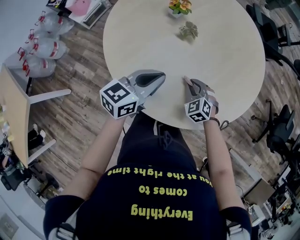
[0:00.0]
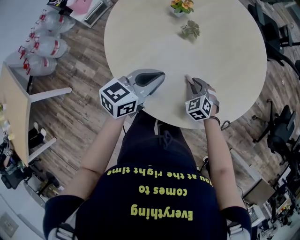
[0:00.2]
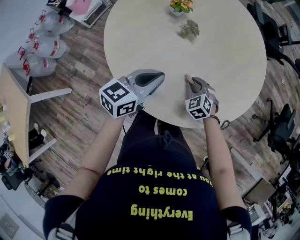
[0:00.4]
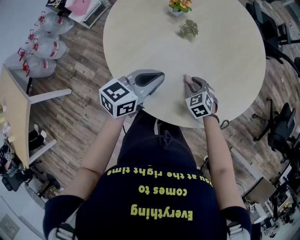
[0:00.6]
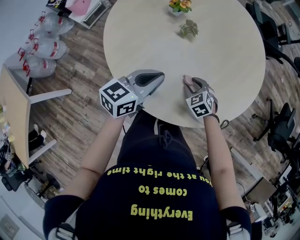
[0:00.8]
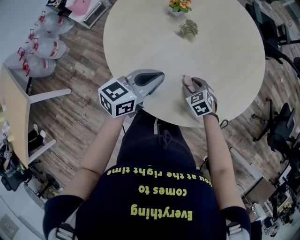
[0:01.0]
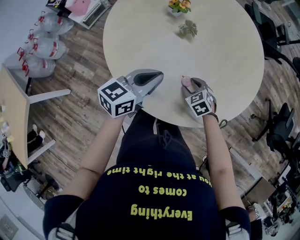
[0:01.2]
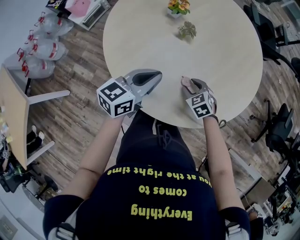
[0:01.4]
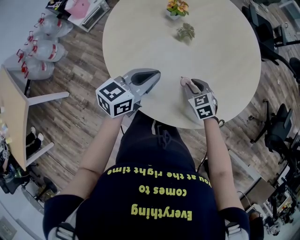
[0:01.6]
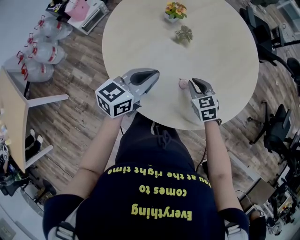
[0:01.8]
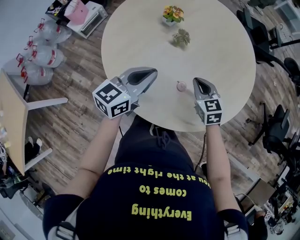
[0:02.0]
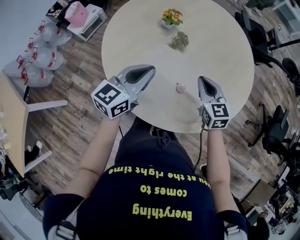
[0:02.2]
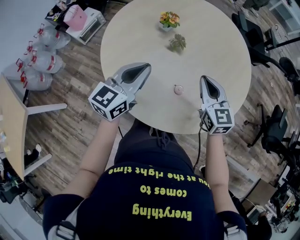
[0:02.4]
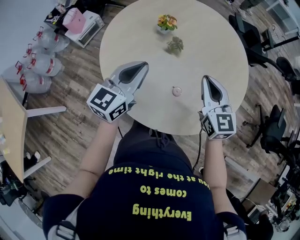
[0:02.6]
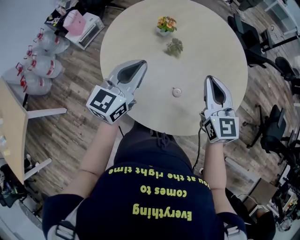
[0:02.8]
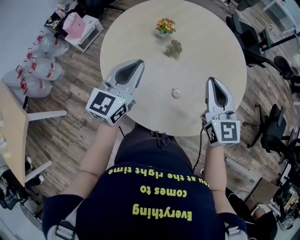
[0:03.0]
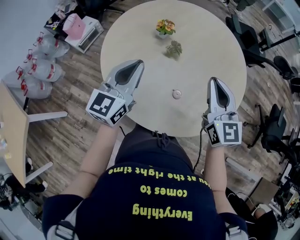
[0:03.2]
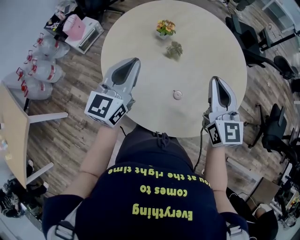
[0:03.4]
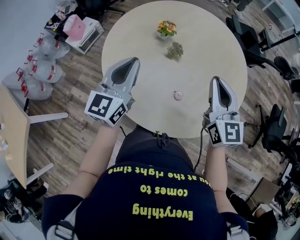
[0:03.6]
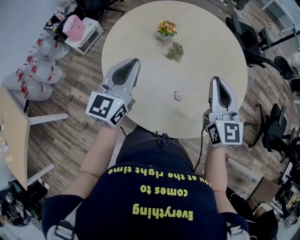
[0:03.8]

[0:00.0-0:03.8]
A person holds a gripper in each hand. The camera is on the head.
0.0 to 1.2 s: The right gripper opens.
1.2 to 2.6 s: The right gripper heads upward, covering about 30 cm, points its fingers roughly 50 degrees further upward, and closes, while the left gripper is displaced upward by approximately 10 cm, and rotates some 20 degrees.
2.6 to 3.8 s: The right gripper goes roughly 5 cm upward. The left gripper ends up some 5 cm from where it was.

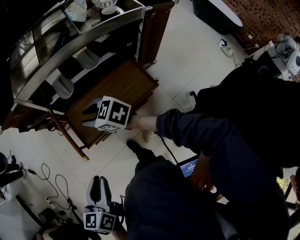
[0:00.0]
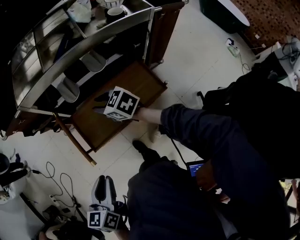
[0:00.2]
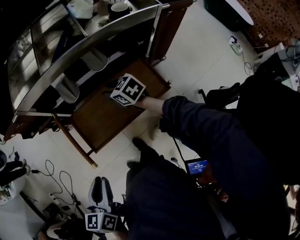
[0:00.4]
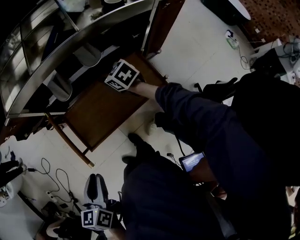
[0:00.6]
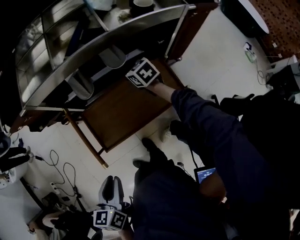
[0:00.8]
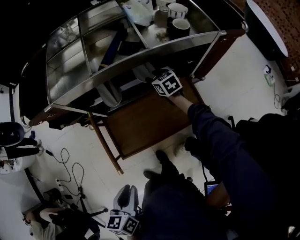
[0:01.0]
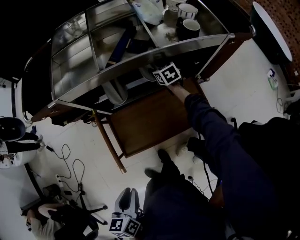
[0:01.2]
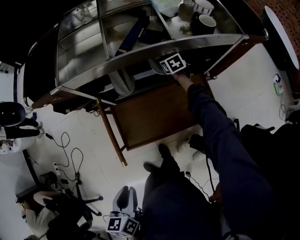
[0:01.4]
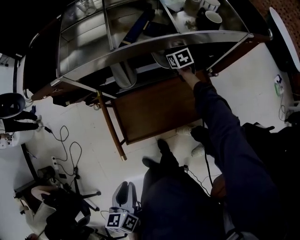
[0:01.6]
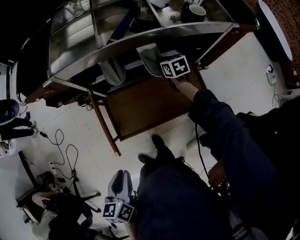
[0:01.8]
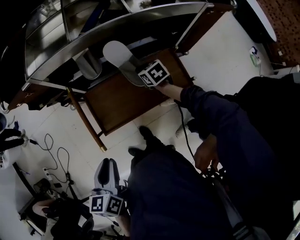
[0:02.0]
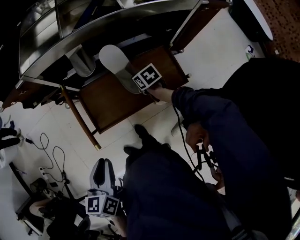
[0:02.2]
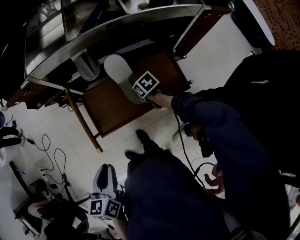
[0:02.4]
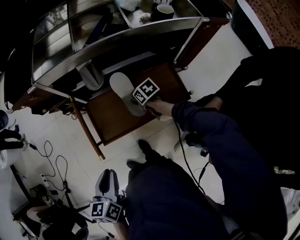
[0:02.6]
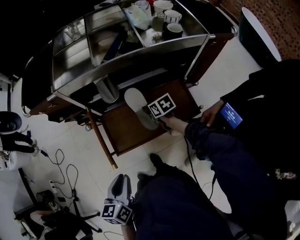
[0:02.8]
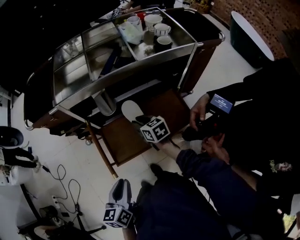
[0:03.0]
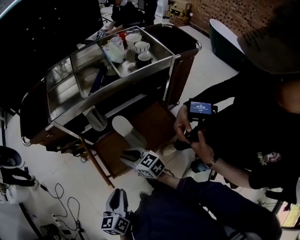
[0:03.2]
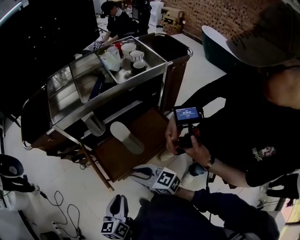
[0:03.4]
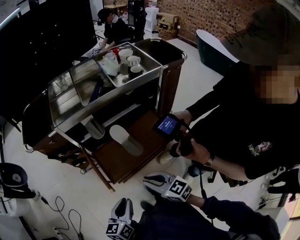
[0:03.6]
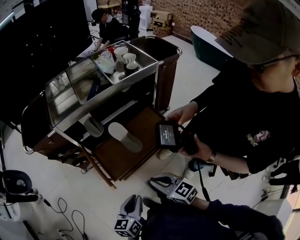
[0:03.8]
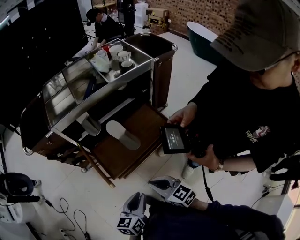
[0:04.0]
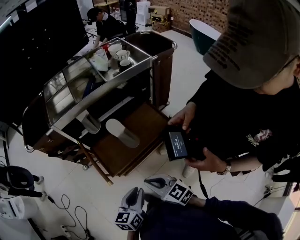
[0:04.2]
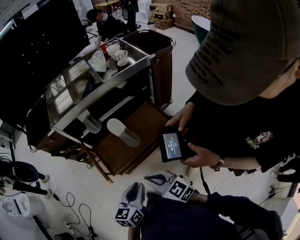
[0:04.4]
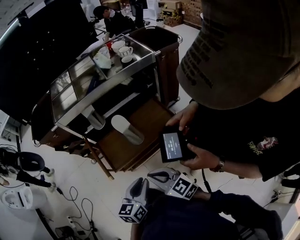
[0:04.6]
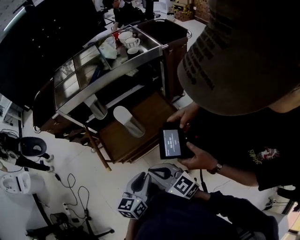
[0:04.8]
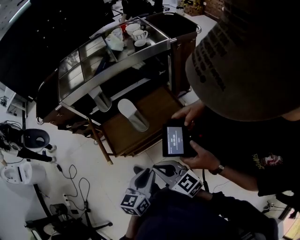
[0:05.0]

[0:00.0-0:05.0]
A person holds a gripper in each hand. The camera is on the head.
0.0 to 1.6 s: The left gripper shifts about 10 cm downward, forward and to the left, and turns by about 20 degrees; the right gripper goes about 50 cm forward, to the right and downward, changes its angle by about 40 degrees, and closes.
1.6 to 3.4 s: The right gripper shifts roughly 50 cm backward, to the left and upward, swivels some 30 degrees, and opens and closes again, while the left gripper changes its angle by roughly 30 degrees.
3.4 to 5.0 s: The right gripper goes about 15 cm backward and to the right, while the left gripper goes some 20 cm to the right.

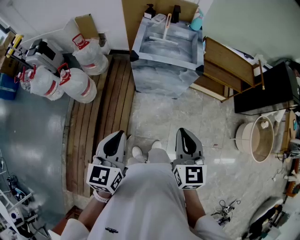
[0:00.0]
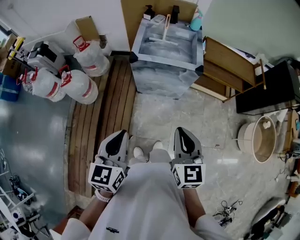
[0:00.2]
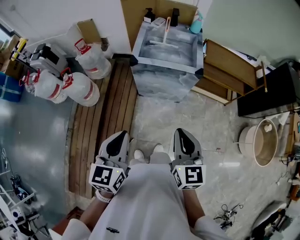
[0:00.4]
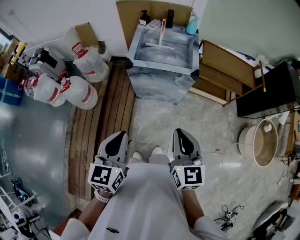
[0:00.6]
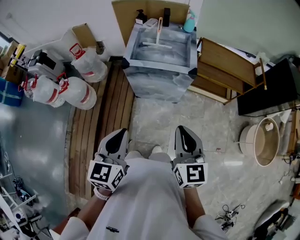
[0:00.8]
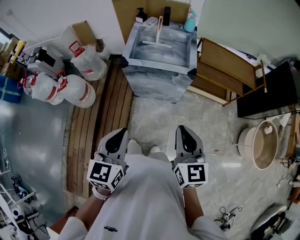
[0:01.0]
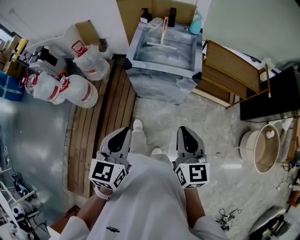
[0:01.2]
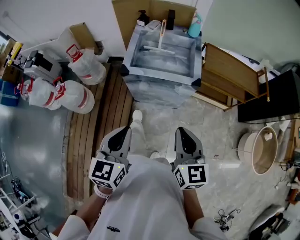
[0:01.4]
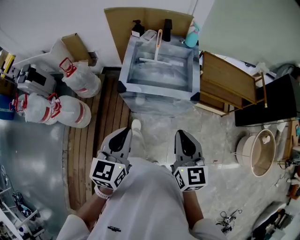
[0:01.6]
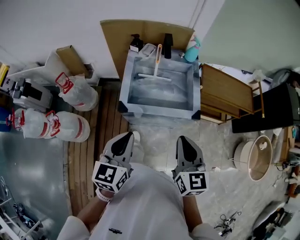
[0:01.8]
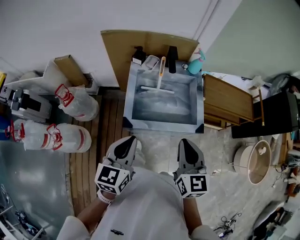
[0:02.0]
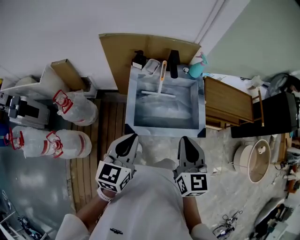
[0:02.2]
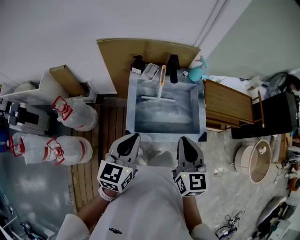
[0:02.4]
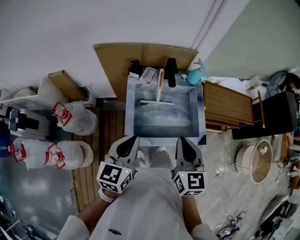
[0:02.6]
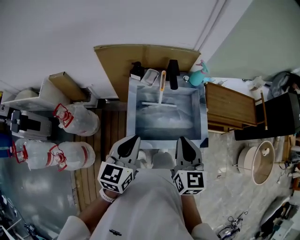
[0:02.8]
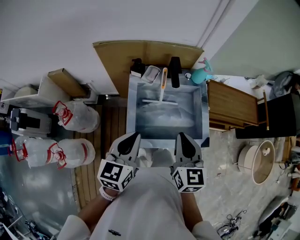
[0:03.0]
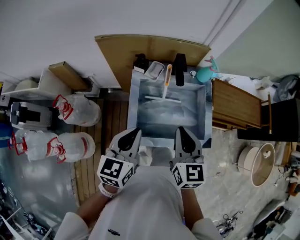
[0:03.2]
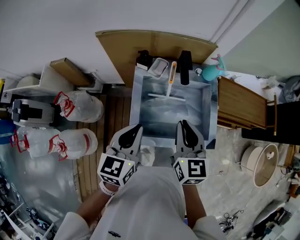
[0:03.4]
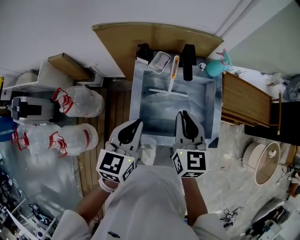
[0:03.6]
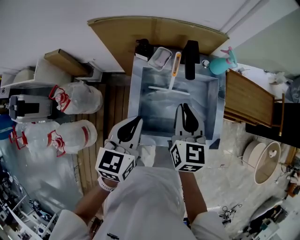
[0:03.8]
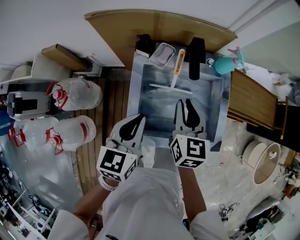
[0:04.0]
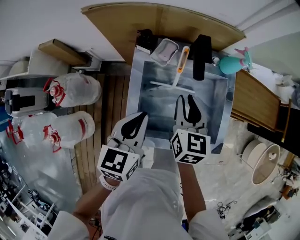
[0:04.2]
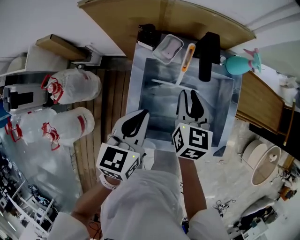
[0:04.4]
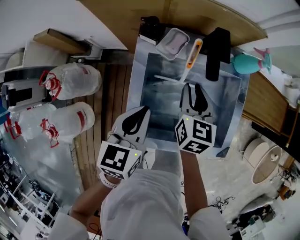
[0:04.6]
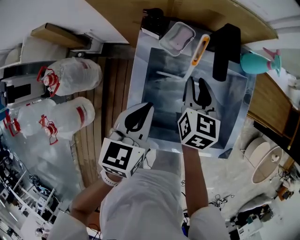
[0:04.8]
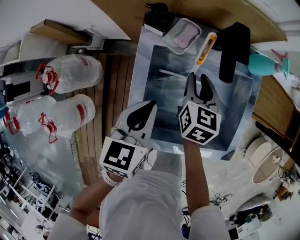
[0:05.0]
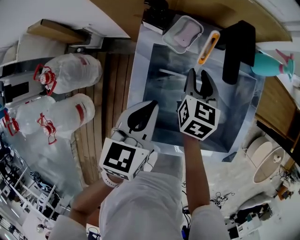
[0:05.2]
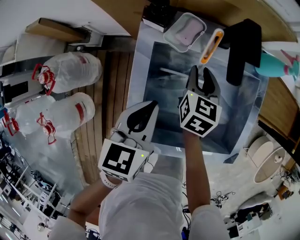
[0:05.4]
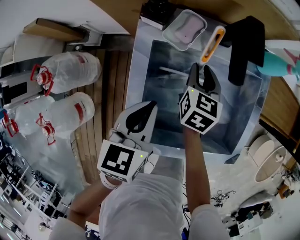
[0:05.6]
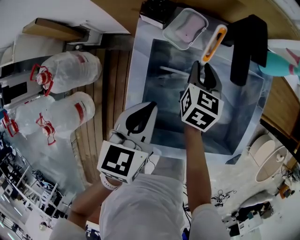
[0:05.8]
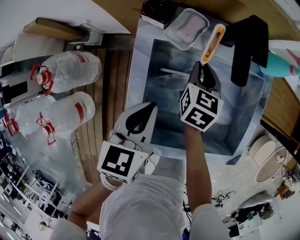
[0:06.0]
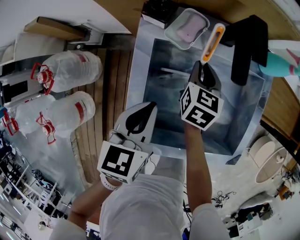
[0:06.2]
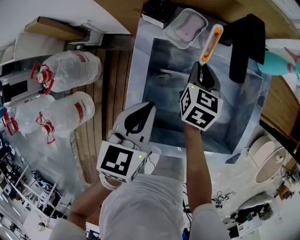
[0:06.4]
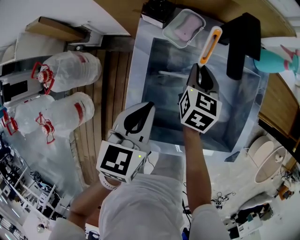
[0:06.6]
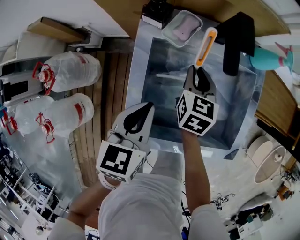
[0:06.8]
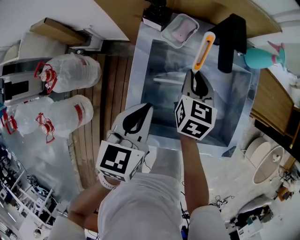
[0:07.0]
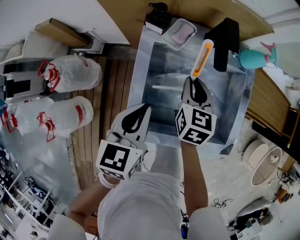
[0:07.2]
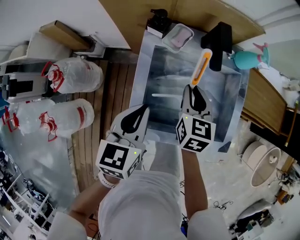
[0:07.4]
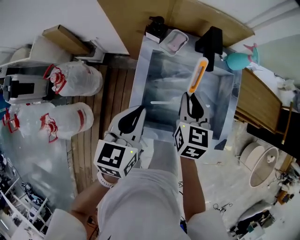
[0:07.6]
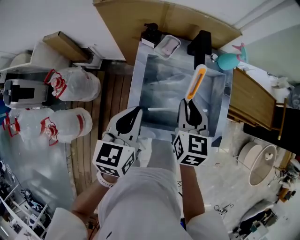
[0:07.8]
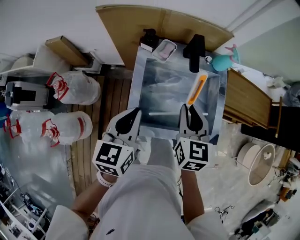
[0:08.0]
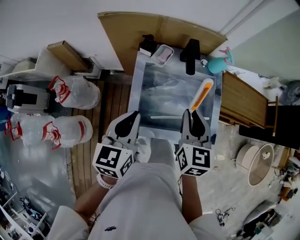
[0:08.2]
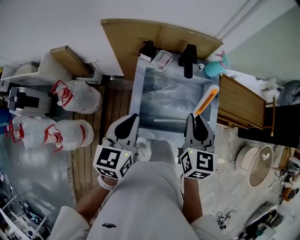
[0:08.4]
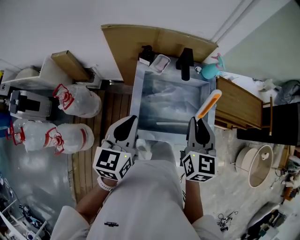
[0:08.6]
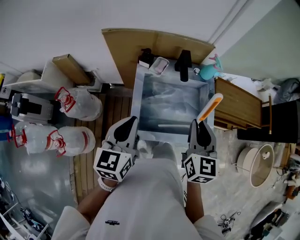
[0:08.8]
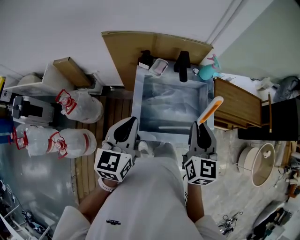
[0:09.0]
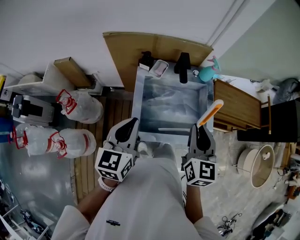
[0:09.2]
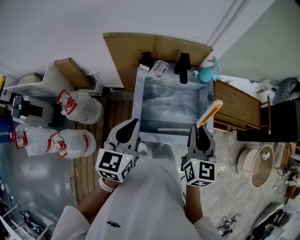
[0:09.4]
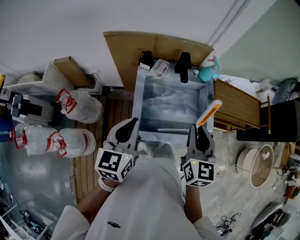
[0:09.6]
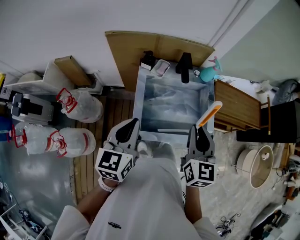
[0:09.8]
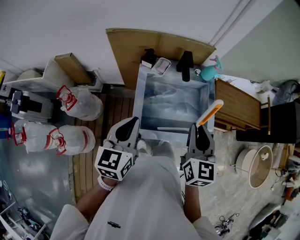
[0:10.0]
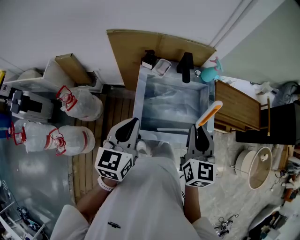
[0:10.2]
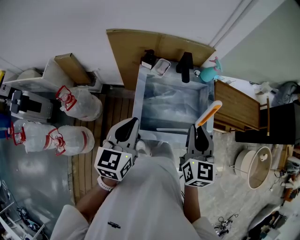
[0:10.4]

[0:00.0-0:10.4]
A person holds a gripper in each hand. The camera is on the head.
0.0 to 1.4 s: Both grippers move forward and to the right, some 15 cm.
1.4 to 3.0 s: The right gripper shifts about 40 cm forward and to the left. The left gripper goes some 40 cm forward.
3.0 to 4.4 s: The right gripper shifts approximately 25 cm forward and downward. The left gripper moves downward and forward, some 20 cm.
4.4 to 6.0 s: The right gripper heads downward and forward, covering approximately 15 cm; the left gripper heads downward, covering some 10 cm.
6.0 to 7.4 s: The left gripper heads upward and backward, covering about 10 cm. The right gripper heads upward and backward, covering approximately 15 cm.
7.4 to 9.0 s: The left gripper travels upward and backward by some 20 cm. Meanwhile the right gripper goes approximately 25 cm upward and backward.
9.0 to 10.4 s: The grippers move only a little.

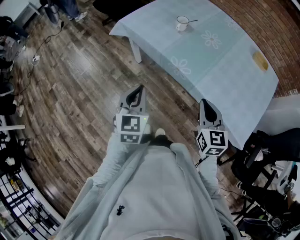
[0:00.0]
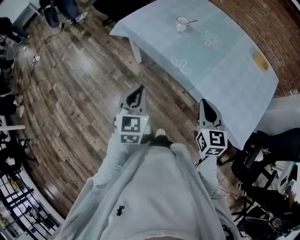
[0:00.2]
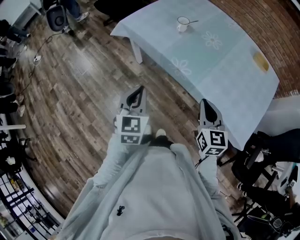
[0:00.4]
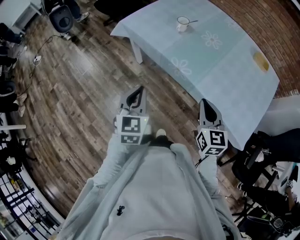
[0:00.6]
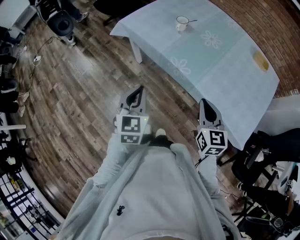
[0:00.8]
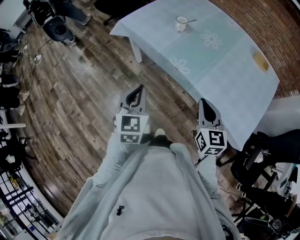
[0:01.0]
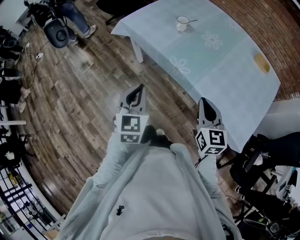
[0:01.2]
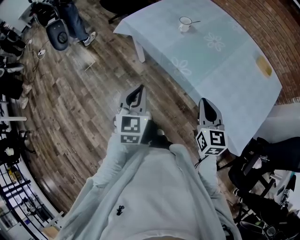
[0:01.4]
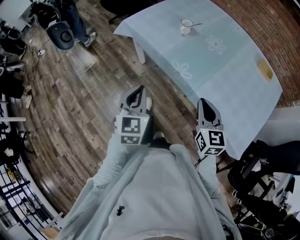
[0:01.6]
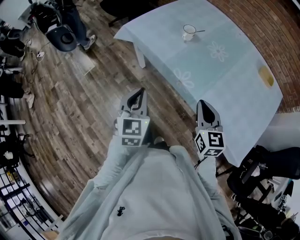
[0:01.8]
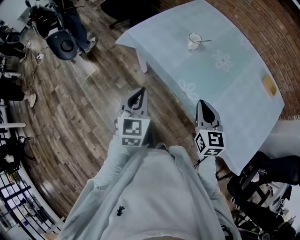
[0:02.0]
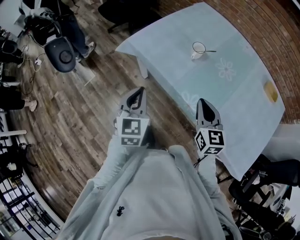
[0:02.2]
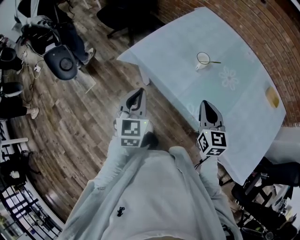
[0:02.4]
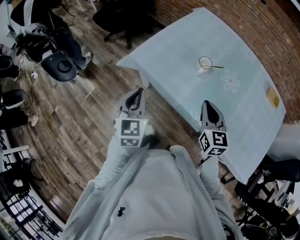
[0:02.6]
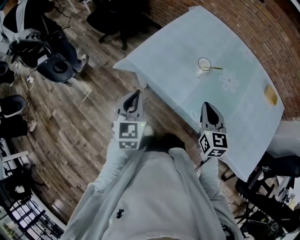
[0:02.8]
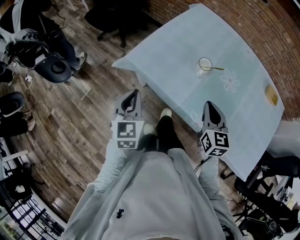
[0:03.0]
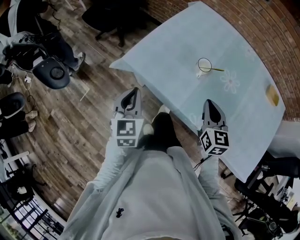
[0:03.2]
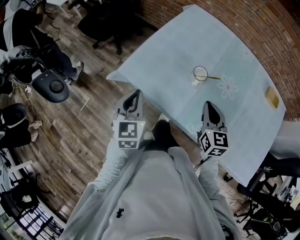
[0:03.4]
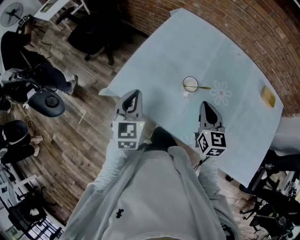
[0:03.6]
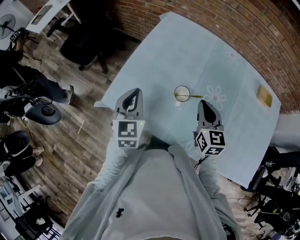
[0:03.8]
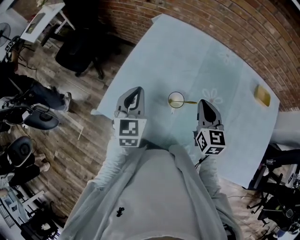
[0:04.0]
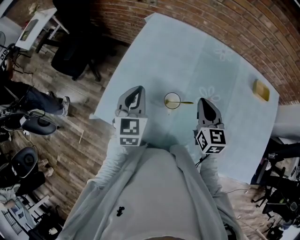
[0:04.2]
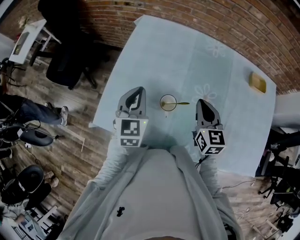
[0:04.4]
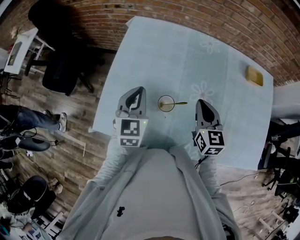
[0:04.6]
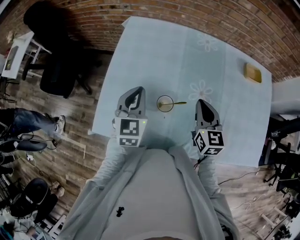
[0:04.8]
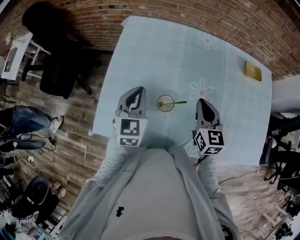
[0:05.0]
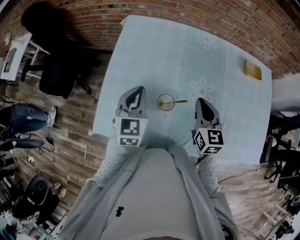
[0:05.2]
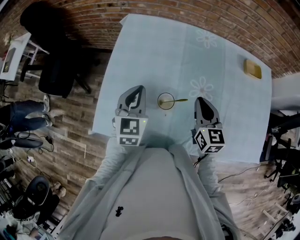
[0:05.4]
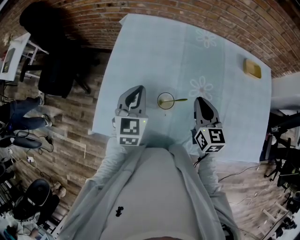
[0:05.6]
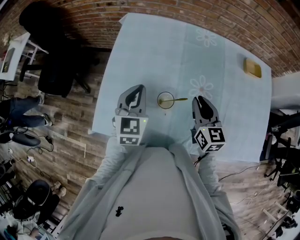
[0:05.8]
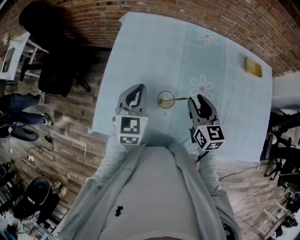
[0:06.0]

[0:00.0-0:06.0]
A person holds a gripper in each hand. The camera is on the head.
0.0 to 1.6 s: The grippers move only a little.
1.6 to 3.0 s: The left gripper goes some 35 cm forward and to the left. The right gripper moves forward, approximately 30 cm.
3.0 to 4.4 s: The left gripper moves forward and to the right, some 35 cm, and changes its angle by approximately 30 degrees, while the right gripper shifts about 20 cm forward and to the right.
4.4 to 6.0 s: The right gripper opens up.
